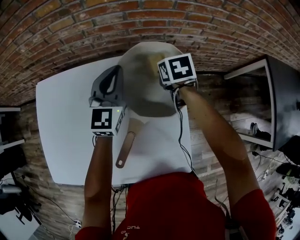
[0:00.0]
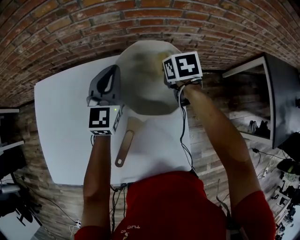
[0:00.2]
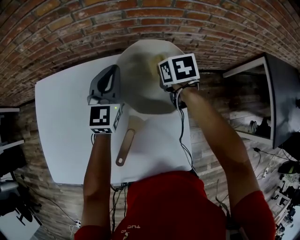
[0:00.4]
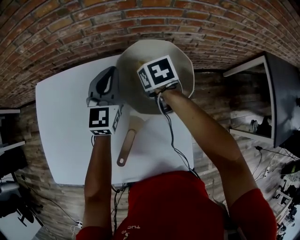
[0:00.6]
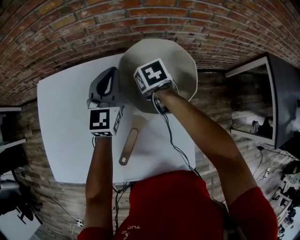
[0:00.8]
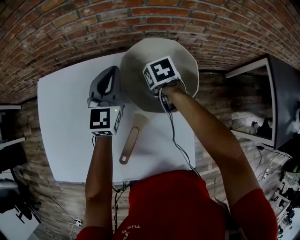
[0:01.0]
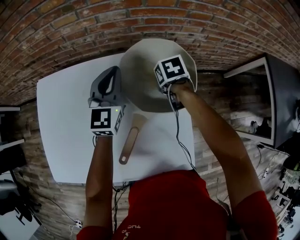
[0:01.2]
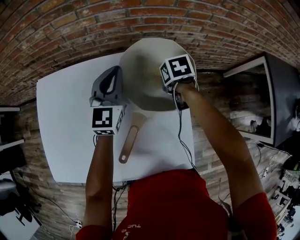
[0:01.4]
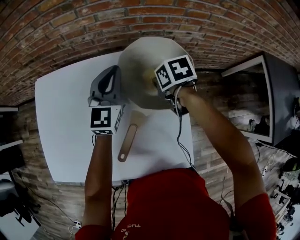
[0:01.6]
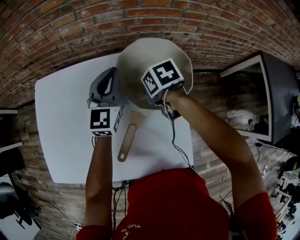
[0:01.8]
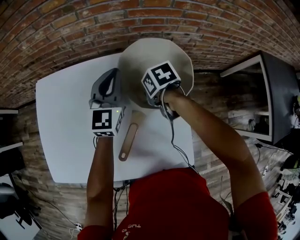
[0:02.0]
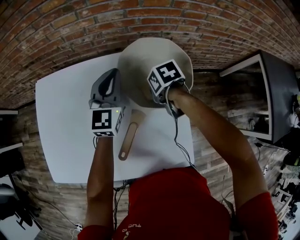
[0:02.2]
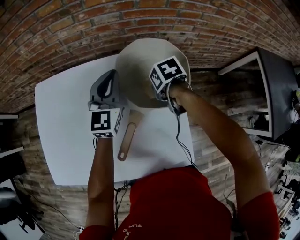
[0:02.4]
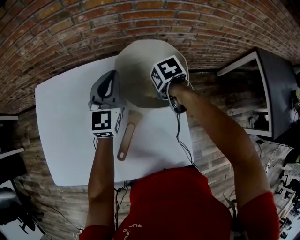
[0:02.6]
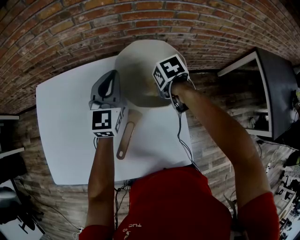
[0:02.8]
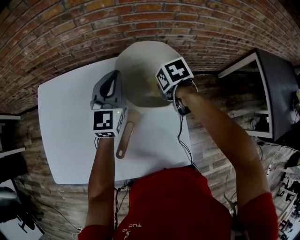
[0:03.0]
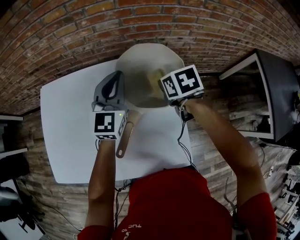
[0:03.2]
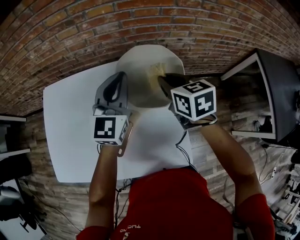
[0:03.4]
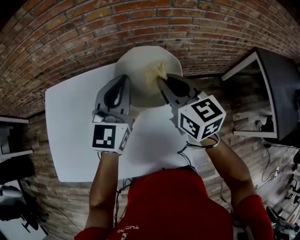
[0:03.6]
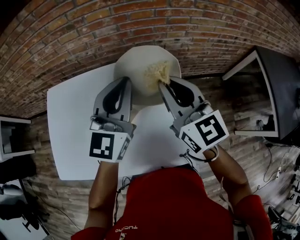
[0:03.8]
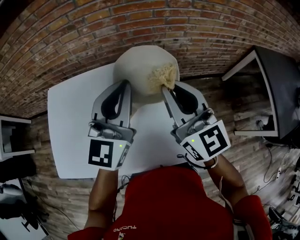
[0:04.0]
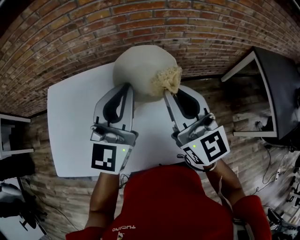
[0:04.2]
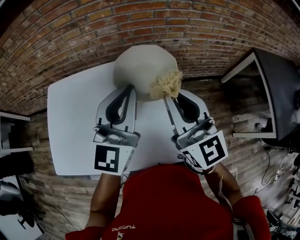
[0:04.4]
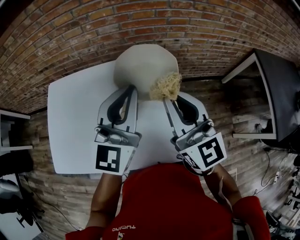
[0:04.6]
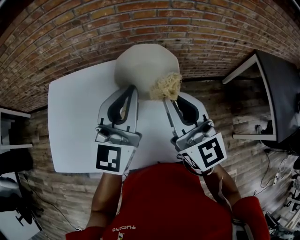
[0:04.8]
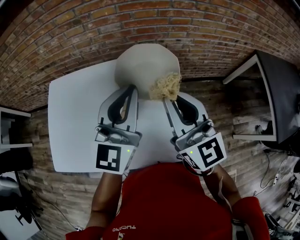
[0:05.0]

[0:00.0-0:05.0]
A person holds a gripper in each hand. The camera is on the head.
0:00.0 to 0:01.6: The right gripper moves left and right over about 10 cm, changing direction 2 times.
0:01.6 to 0:03.4: The left gripper travels upward by approximately 10 cm, while the right gripper is displaced upward by about 15 cm, and changes its angle by about 30 degrees.
0:03.4 to 0:05.0: The two grippers go some 20 cm backward and upward. The right gripper tips its fingers upward by approximately 40 degrees.

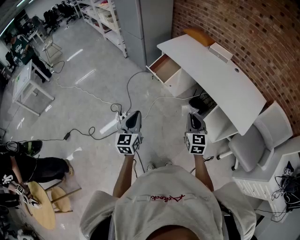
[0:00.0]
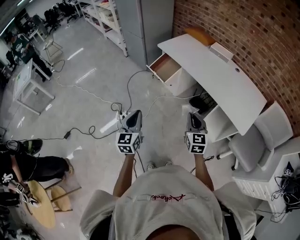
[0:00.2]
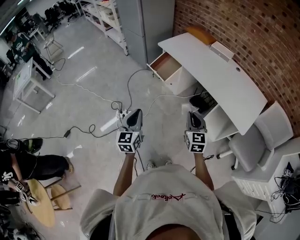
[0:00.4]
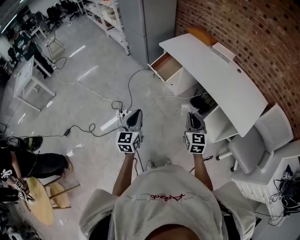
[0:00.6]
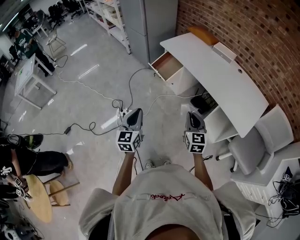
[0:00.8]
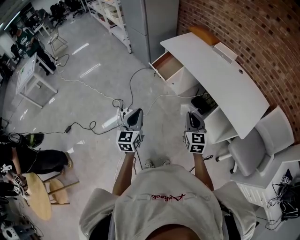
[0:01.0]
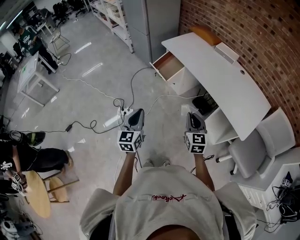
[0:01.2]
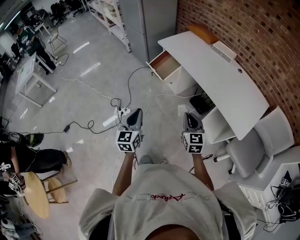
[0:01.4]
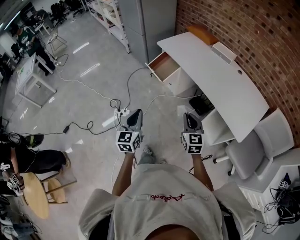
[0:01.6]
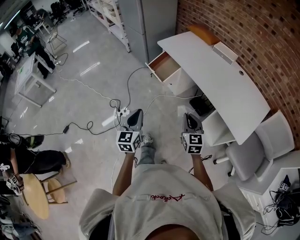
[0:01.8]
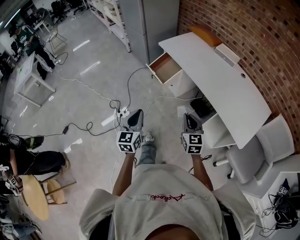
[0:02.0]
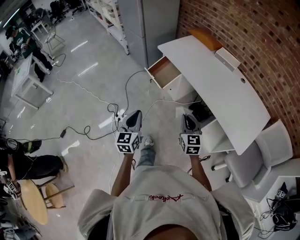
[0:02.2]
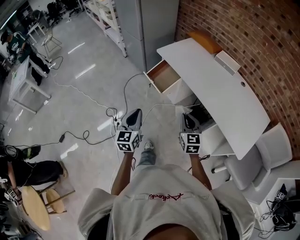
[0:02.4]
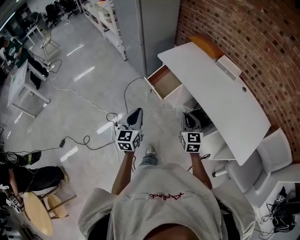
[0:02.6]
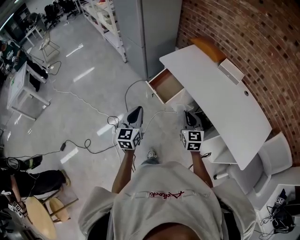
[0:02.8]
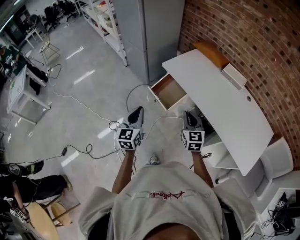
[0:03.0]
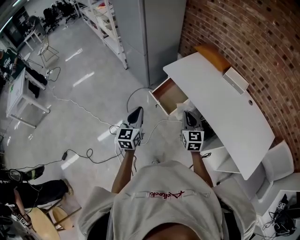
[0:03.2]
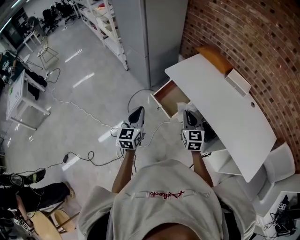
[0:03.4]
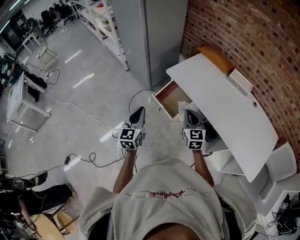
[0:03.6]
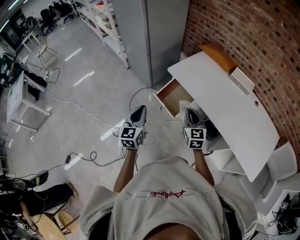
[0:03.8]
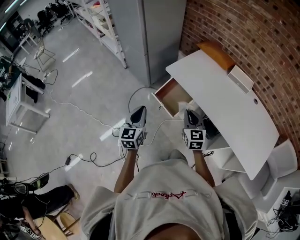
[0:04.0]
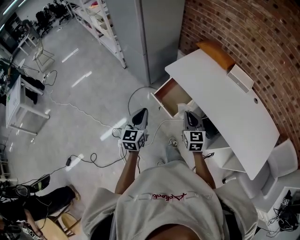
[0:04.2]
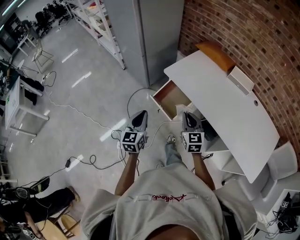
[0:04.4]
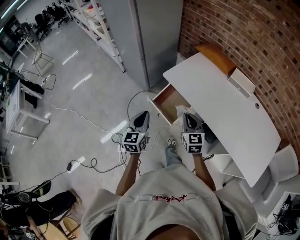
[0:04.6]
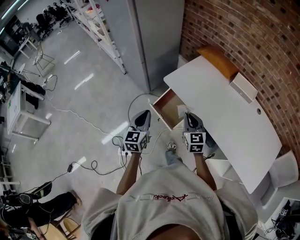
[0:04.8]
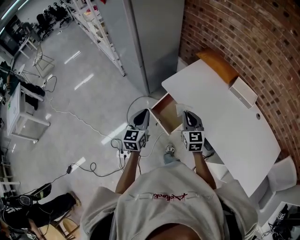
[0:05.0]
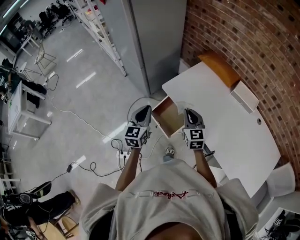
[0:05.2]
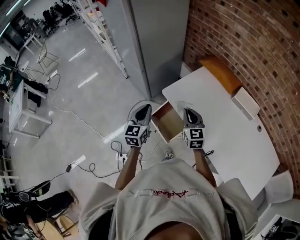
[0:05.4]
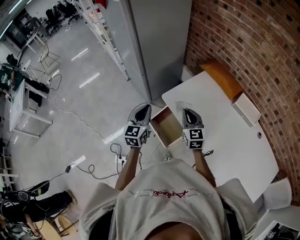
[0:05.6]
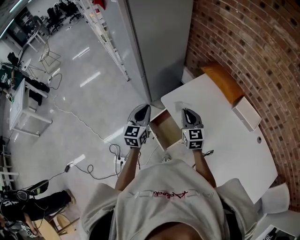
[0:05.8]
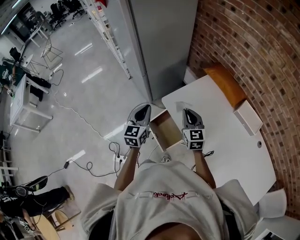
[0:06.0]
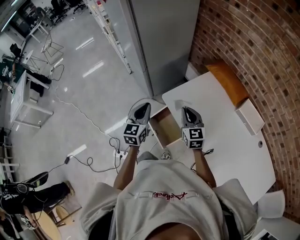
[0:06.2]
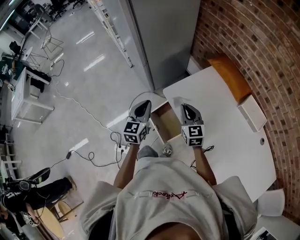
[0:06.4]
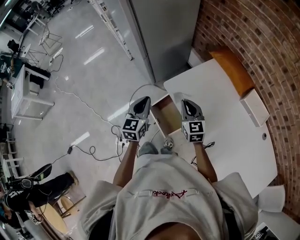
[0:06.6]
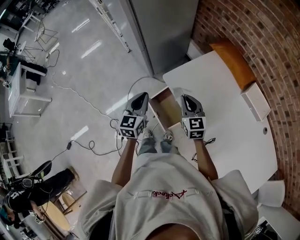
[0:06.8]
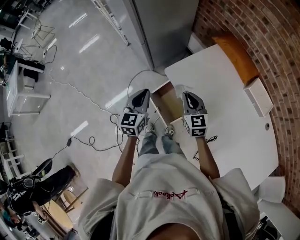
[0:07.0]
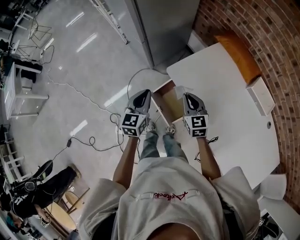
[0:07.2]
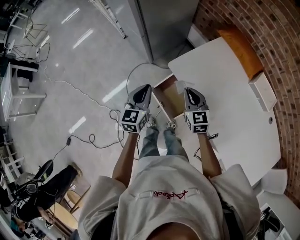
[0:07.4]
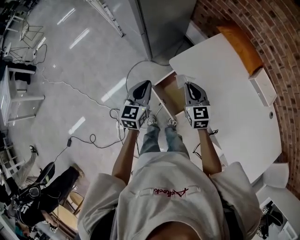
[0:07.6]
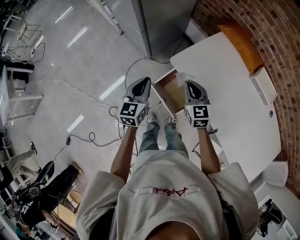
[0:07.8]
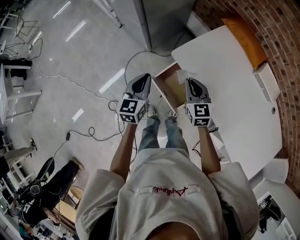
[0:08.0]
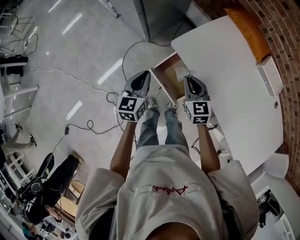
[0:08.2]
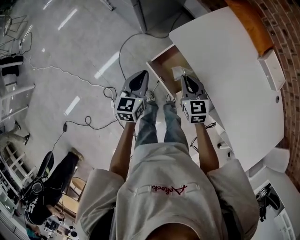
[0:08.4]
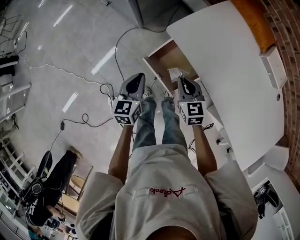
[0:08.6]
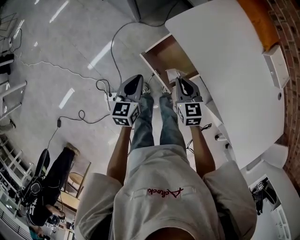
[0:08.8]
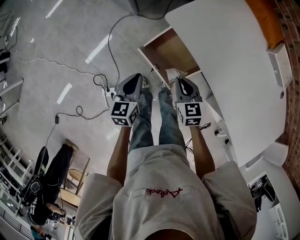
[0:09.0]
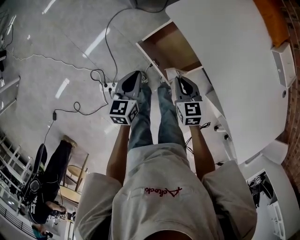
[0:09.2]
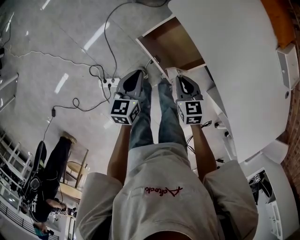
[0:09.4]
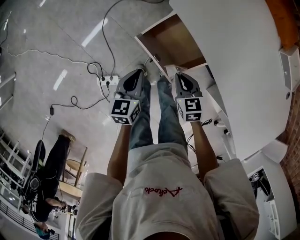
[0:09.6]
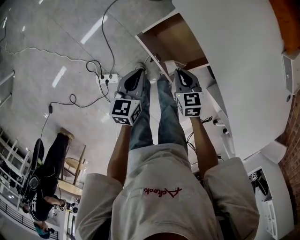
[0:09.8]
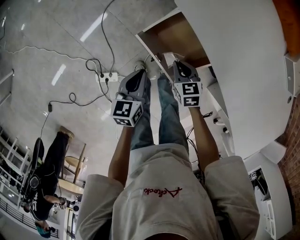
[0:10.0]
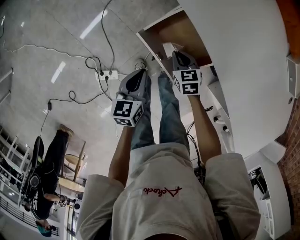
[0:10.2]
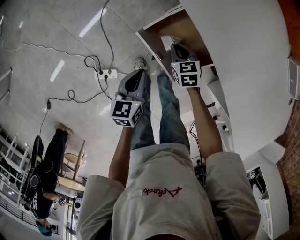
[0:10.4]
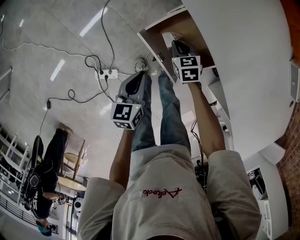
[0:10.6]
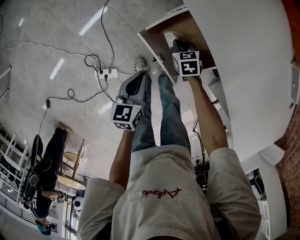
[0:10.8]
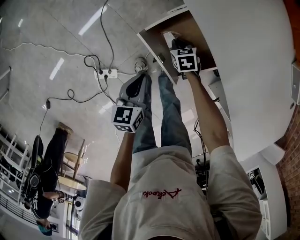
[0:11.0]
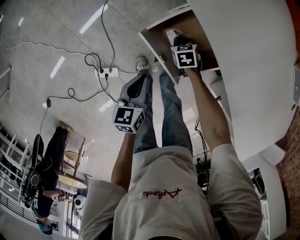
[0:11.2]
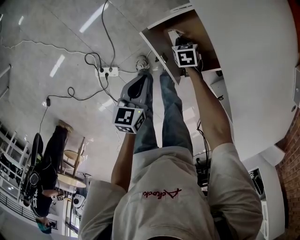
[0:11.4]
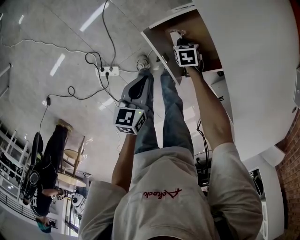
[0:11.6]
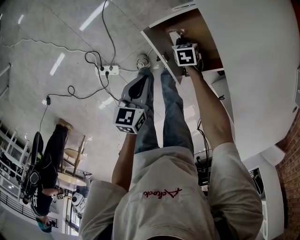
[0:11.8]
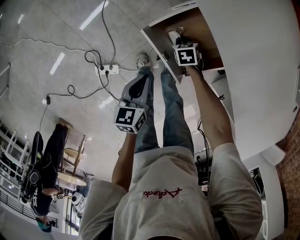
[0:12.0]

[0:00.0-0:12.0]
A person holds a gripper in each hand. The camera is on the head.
0:00.0 to 0:01.6: The left gripper is displaced to the right by some 5 cm. The right gripper changes place by approximately 5 cm.
0:01.6 to 0:03.0: Both grippers travel together forward, about 30 cm.
0:03.0 to 0:04.4: The left gripper is displaced forward by approximately 10 cm. The right gripper shifts some 10 cm forward and to the left.
0:04.4 to 0:06.0: Both grippers travel together forward, approximately 30 cm.
0:06.0 to 0:07.6: The grippers both shift downward and to the left by about 10 cm.
0:07.6 to 0:09.0: Both grippers move downward and backward, approximately 20 cm.
0:09.0 to 0:10.4: The left gripper moves downward, about 10 cm. The right gripper is displaced downward and forward by about 20 cm.
0:10.4 to 0:12.0: The right gripper shifts roughly 15 cm downward.

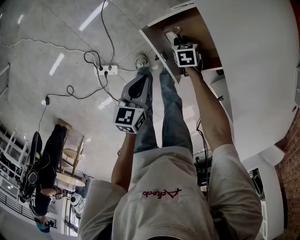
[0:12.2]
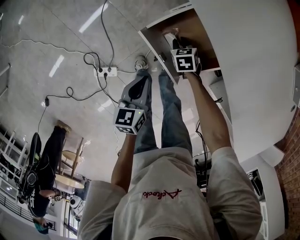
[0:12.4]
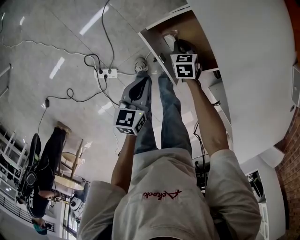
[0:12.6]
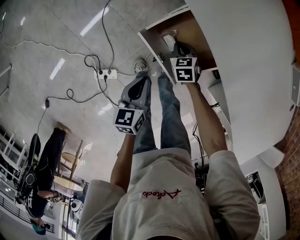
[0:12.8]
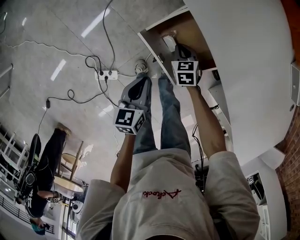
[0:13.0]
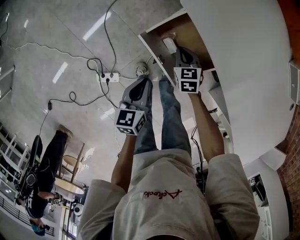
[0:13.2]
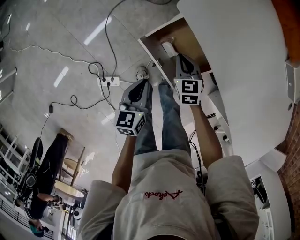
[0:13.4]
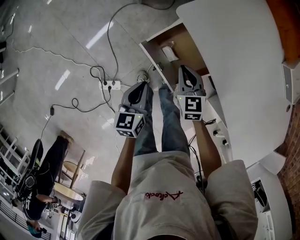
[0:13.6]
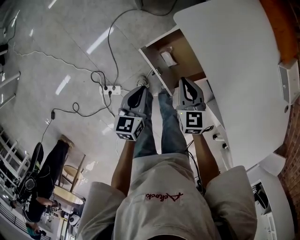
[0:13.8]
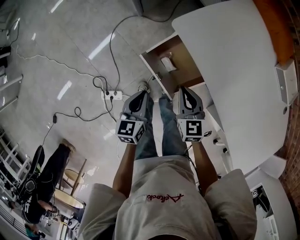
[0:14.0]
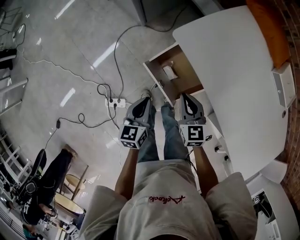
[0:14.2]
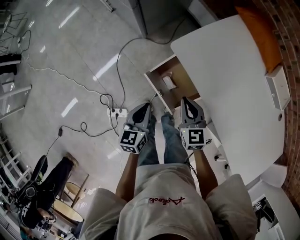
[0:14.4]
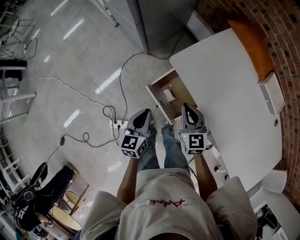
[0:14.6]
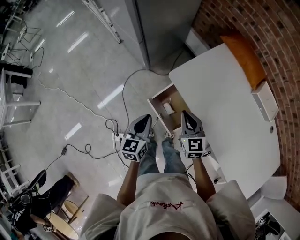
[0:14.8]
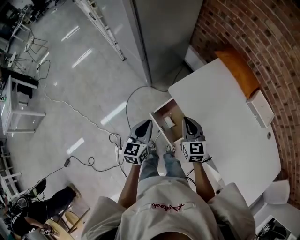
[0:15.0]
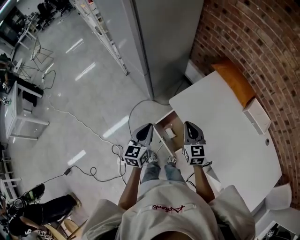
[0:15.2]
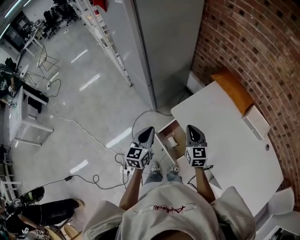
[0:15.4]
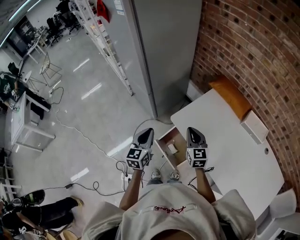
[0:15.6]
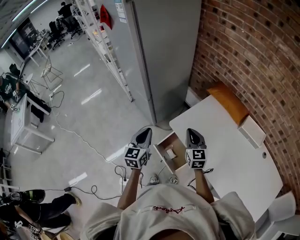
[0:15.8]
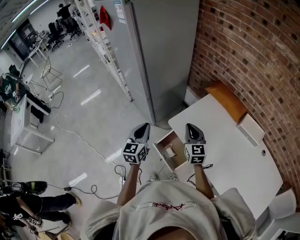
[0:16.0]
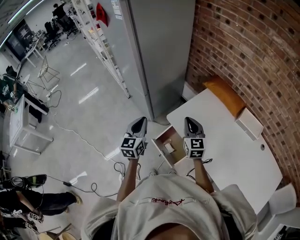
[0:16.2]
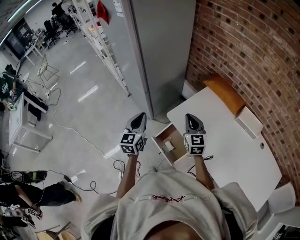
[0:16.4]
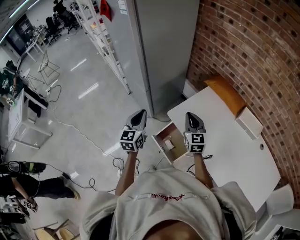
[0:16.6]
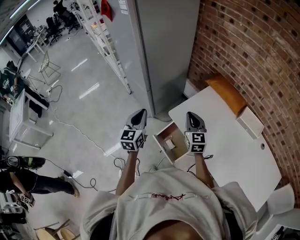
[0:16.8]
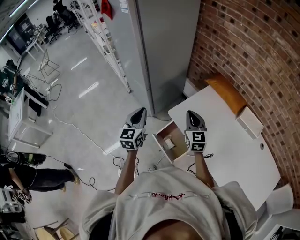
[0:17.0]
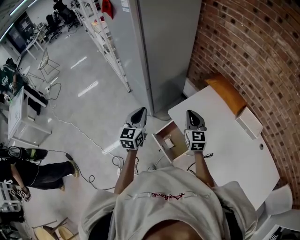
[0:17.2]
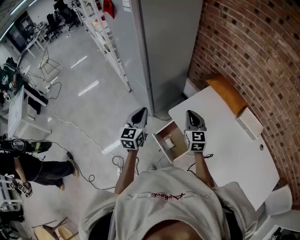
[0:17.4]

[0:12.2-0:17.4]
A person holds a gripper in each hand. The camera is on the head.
0:12.2 to 0:14.0: The left gripper moves upward, roughly 10 cm; the right gripper is displaced upward by some 30 cm, and angles its fingers upward, by some 40 degrees.
0:14.0 to 0:15.6: The two grippers go roughly 25 cm upward. The left gripper swivels some 30 degrees. The right gripper changes its angle by roughly 20 degrees.
0:15.6 to 0:17.4: Both grippers move upward, approximately 5 cm.

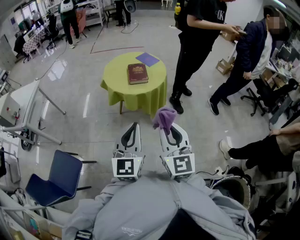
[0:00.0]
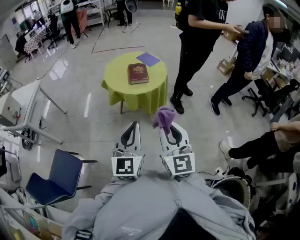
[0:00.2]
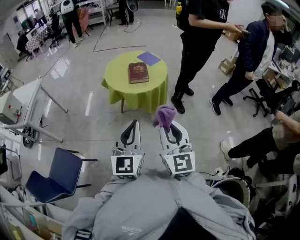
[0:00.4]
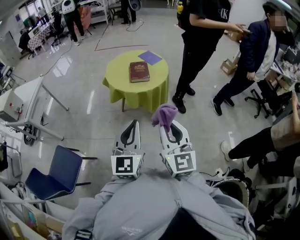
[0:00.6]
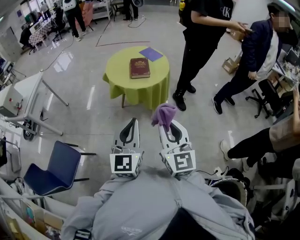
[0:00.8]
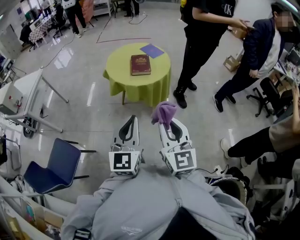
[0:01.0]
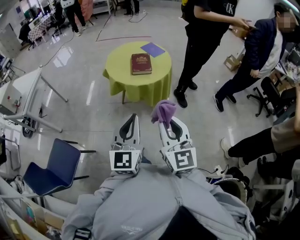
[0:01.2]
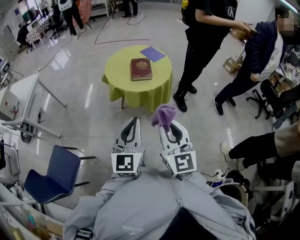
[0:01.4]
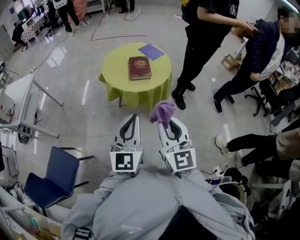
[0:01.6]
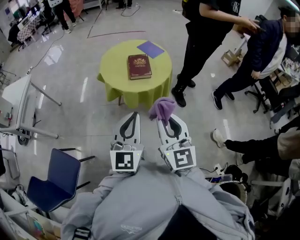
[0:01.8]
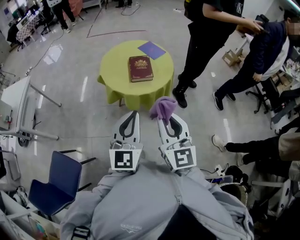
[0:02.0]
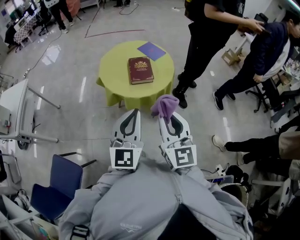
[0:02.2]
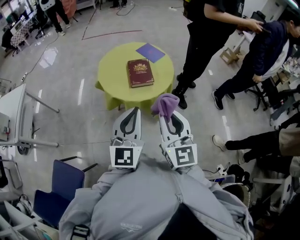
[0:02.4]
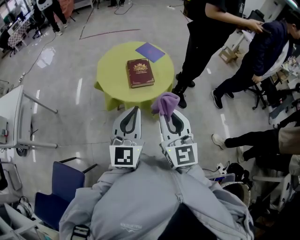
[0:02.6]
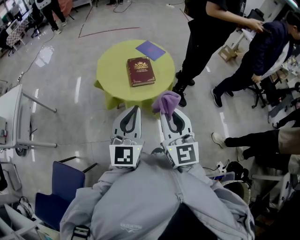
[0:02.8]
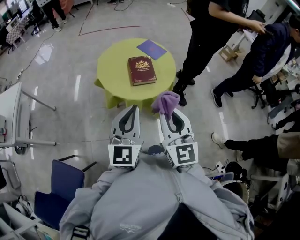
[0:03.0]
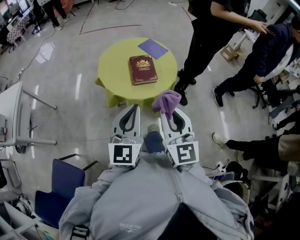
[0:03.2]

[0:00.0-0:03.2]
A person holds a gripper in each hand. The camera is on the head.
0:00.0 to 0:01.6: Both grippers travel together forward, some 15 cm.
0:01.6 to 0:03.2: The left gripper travels forward by roughly 20 cm. Meanwhile the right gripper heads forward and to the left, covering about 20 cm.
